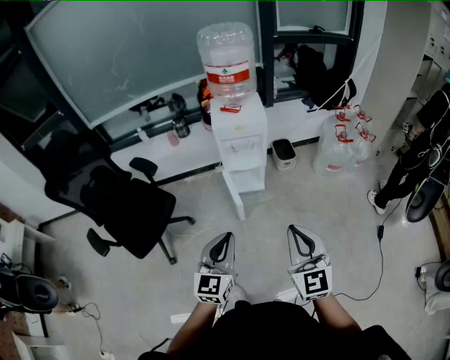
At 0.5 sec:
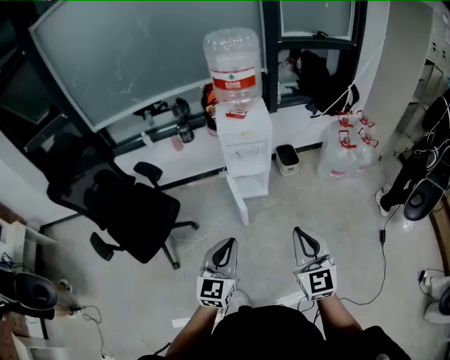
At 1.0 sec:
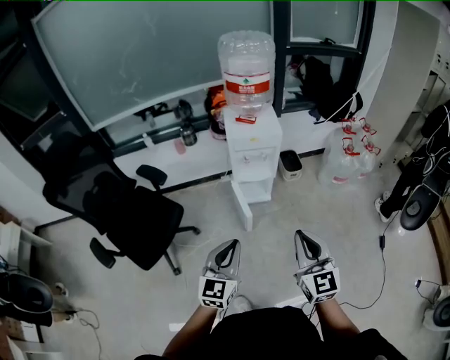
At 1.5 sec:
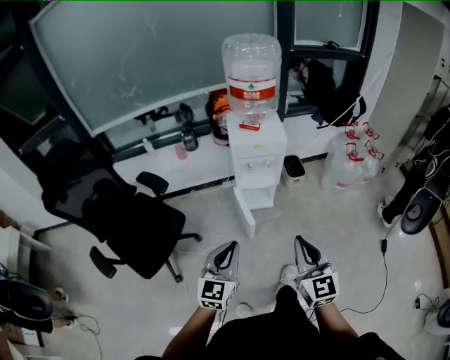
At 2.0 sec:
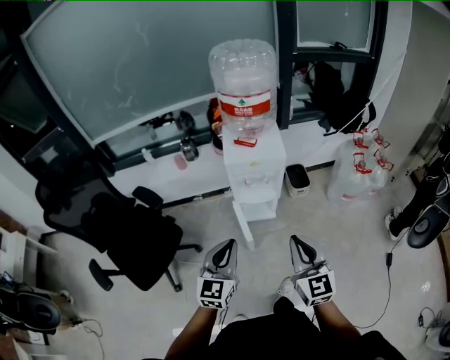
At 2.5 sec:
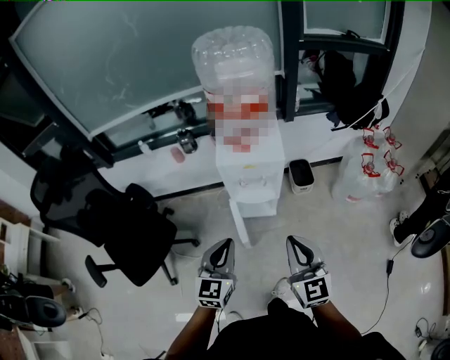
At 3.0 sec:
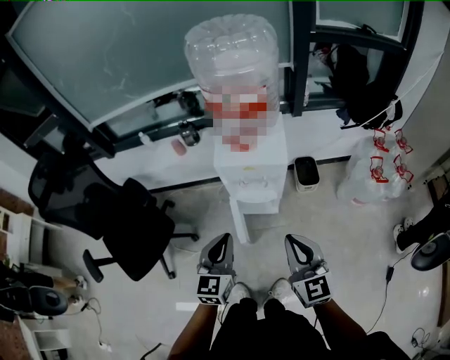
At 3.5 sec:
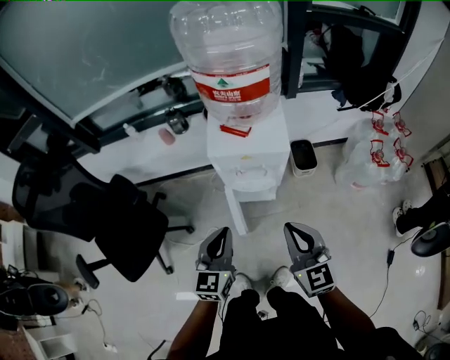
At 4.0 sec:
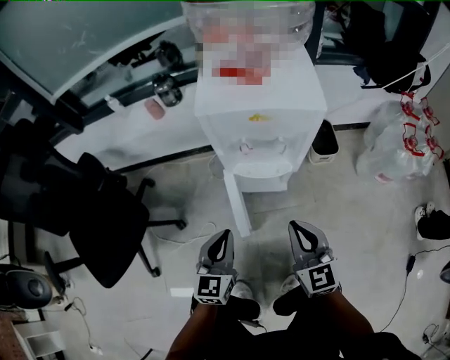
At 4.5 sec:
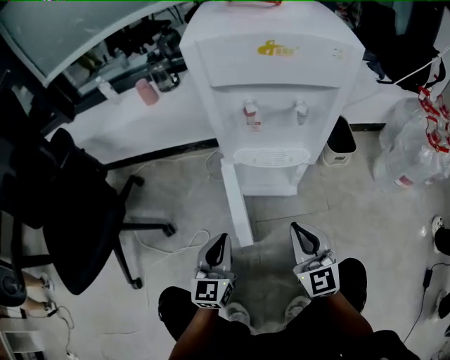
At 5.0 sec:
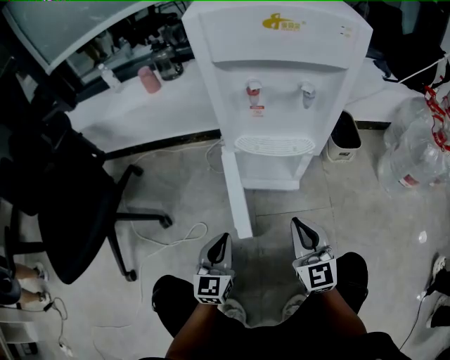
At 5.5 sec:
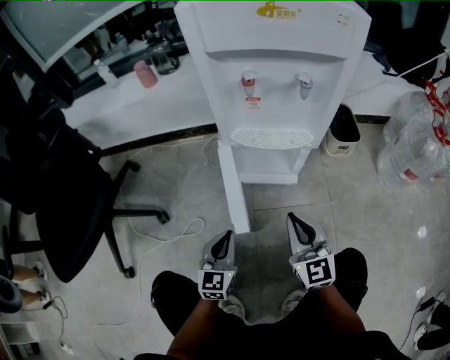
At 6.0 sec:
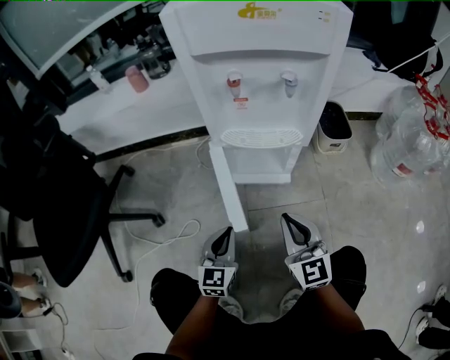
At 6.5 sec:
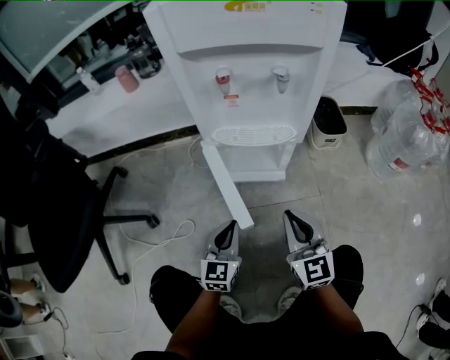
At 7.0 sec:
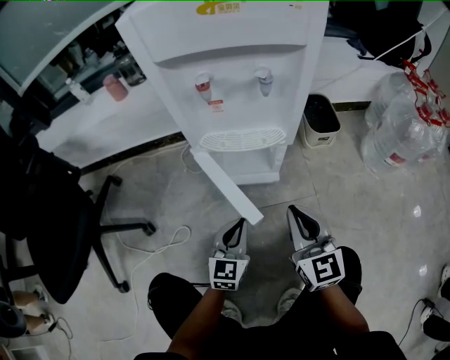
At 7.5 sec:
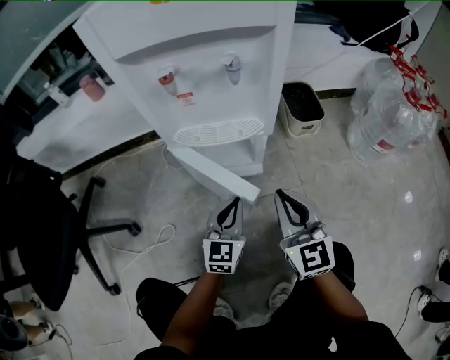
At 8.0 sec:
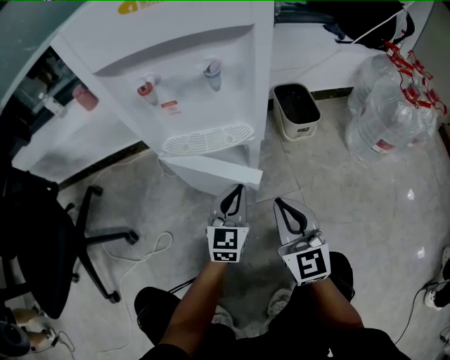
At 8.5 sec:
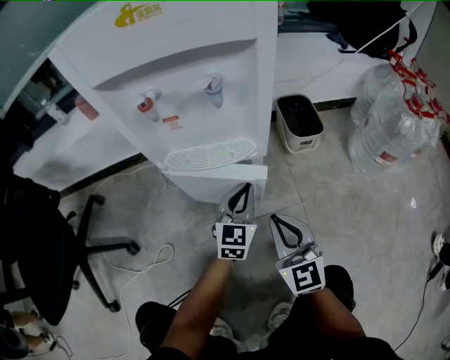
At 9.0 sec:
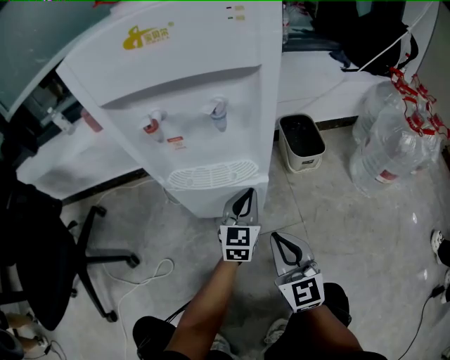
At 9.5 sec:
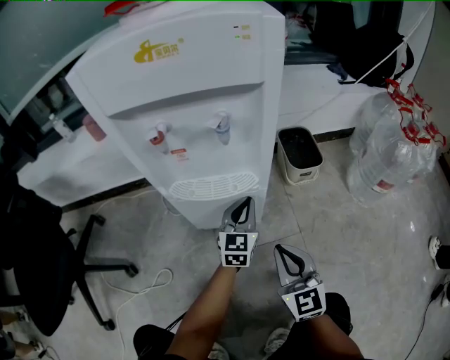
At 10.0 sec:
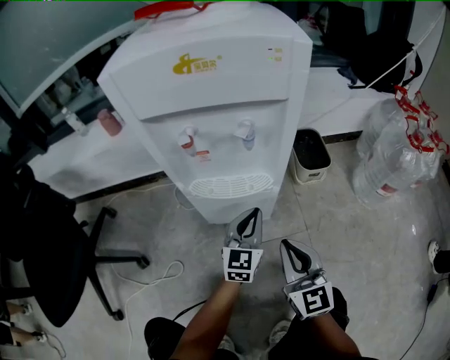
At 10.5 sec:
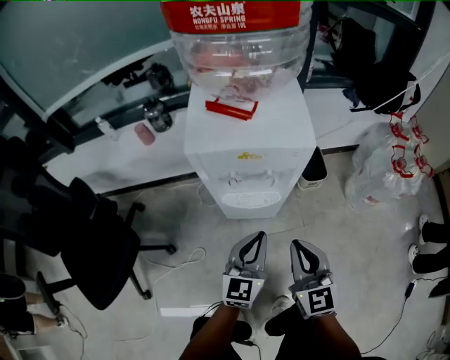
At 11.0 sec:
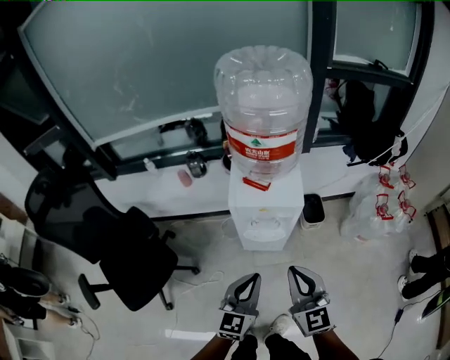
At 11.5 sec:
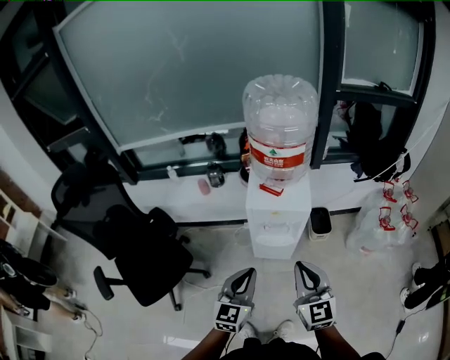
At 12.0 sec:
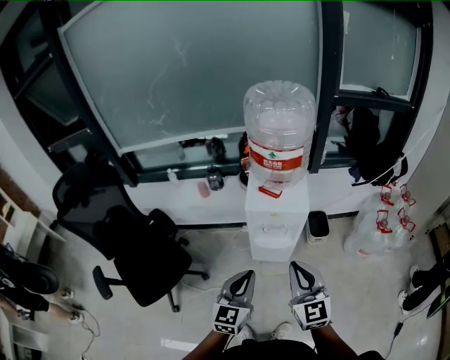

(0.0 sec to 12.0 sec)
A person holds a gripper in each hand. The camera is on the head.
0.0 sec - 2.0 sec: The two grippers go approximately 20 cm forward.
2.0 sec - 4.0 sec: The grippers both shift downward and forward by roughly 35 cm.
4.0 sec - 6.0 sec: The grippers both shift downward by roughly 25 cm.
6.0 sec - 8.0 sec: The right gripper shifts approximately 10 cm to the right. The left gripper shifts some 20 cm to the right and forward.
8.0 sec - 10.0 sec: The left gripper heads upward, covering approximately 5 cm.
10.0 sec - 12.0 sec: The right gripper shifts some 50 cm upward. The left gripper is displaced upward and backward by some 60 cm.

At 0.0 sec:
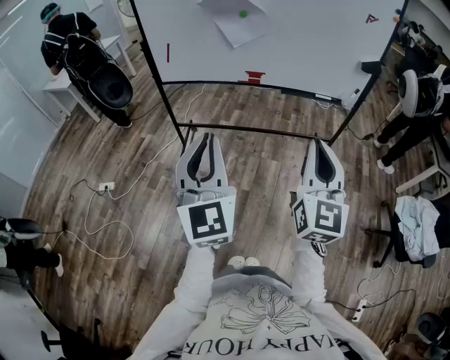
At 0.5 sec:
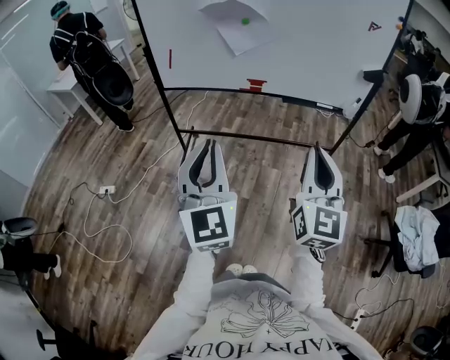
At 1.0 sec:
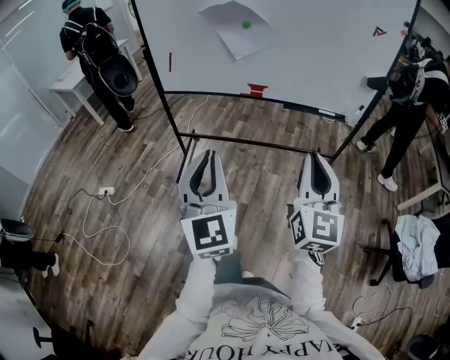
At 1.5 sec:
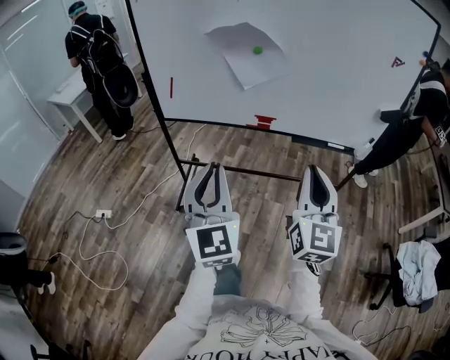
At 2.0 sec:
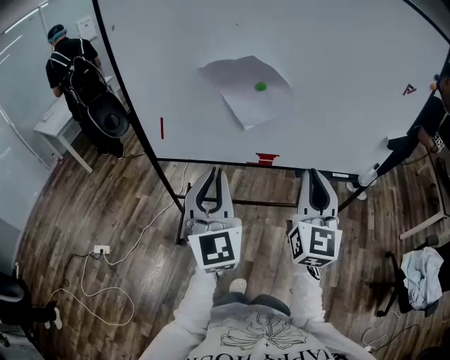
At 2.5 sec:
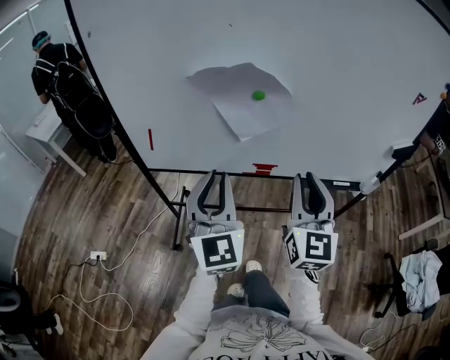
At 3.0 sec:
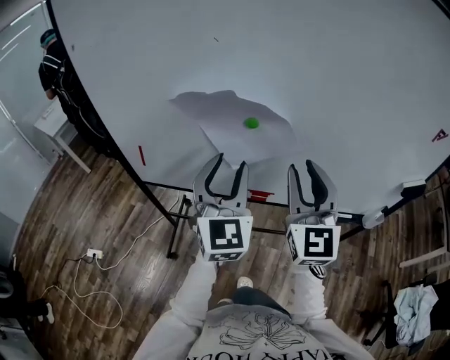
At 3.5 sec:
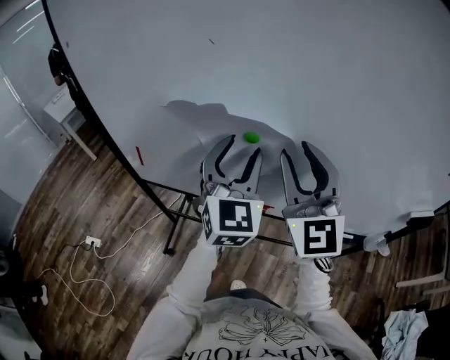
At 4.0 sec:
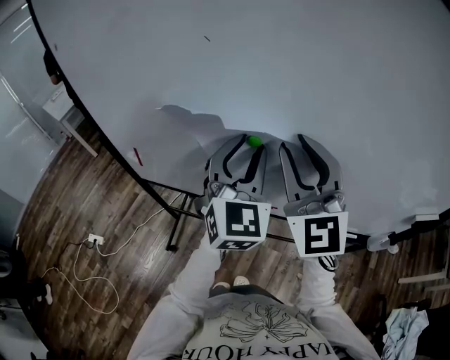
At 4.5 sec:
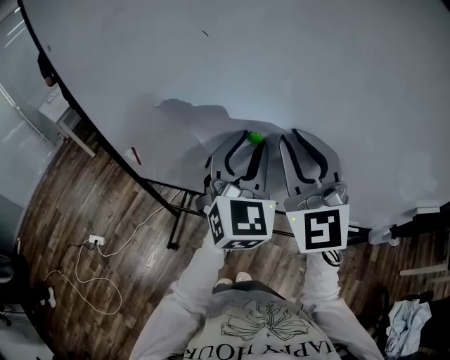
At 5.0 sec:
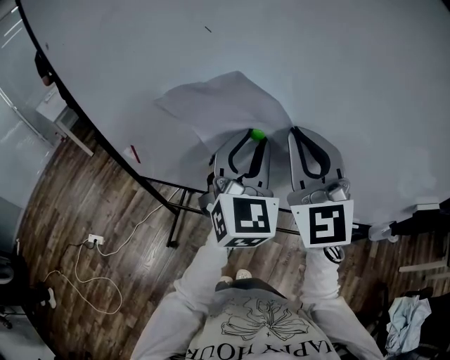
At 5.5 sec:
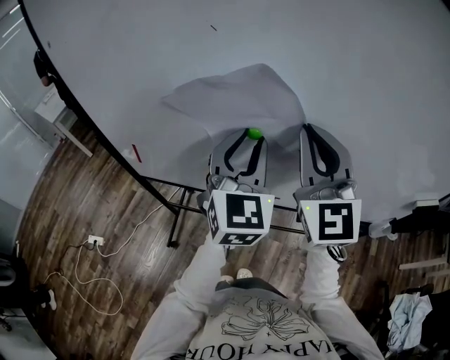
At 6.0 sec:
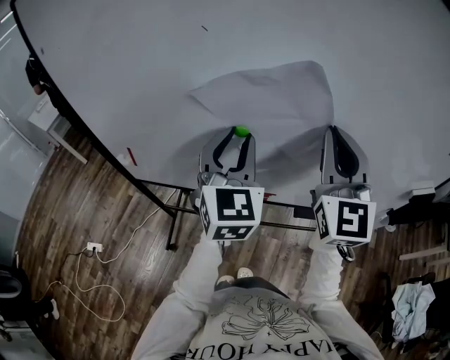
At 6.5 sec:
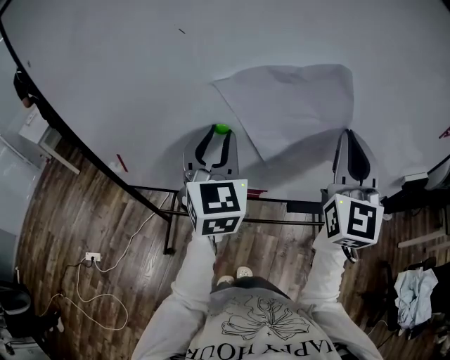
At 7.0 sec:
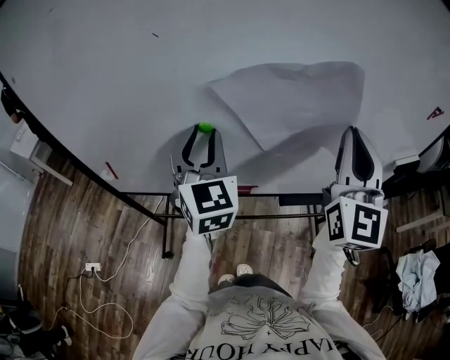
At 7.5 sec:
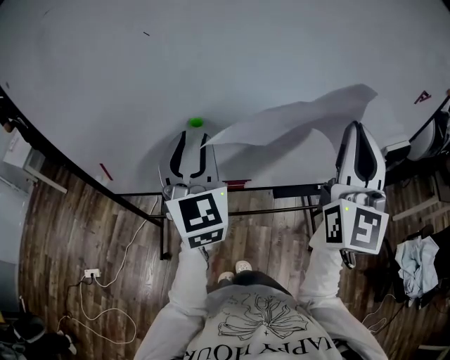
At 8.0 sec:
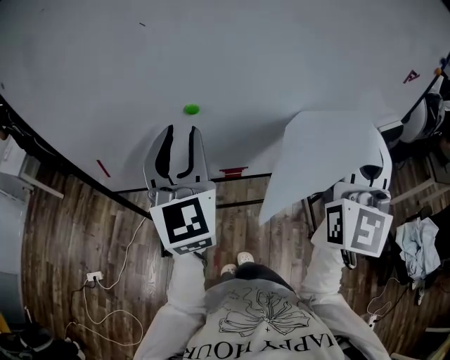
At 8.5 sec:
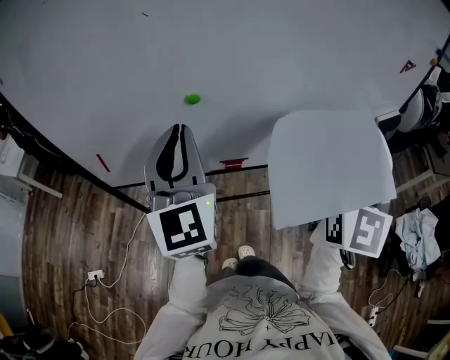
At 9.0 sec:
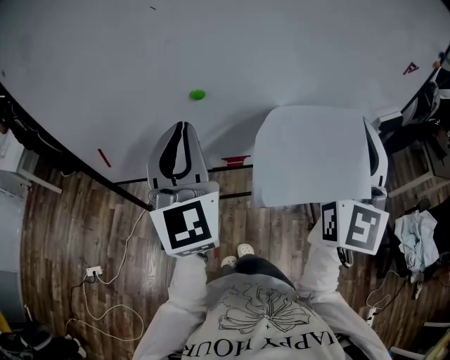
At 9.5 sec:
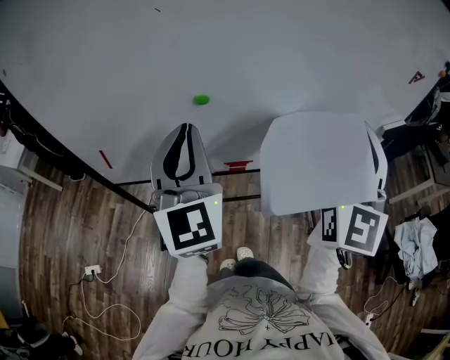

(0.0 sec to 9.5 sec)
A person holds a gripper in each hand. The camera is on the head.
0.0 sec - 2.0 sec: Both grippers move forward, about 35 cm.
2.0 sec - 4.0 sec: The left gripper shifts about 35 cm forward and to the right, and opens its fingers, while the right gripper moves forward, roughly 30 cm, turns by some 30 degrees, and opens up.
4.0 sec - 5.5 sec: The right gripper closes up.
5.5 sec - 7.5 sec: The right gripper shifts about 20 cm to the right and backward, and changes its angle by roughly 30 degrees.
7.5 sec - 9.5 sec: Both grippers move backward, approximately 5 cm. The left gripper closes up.

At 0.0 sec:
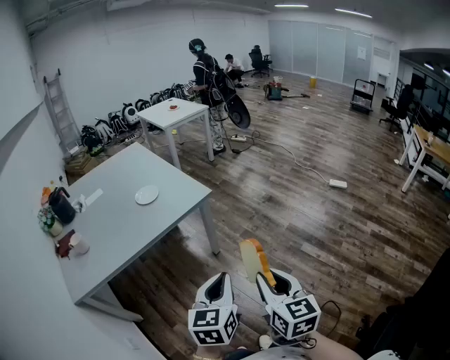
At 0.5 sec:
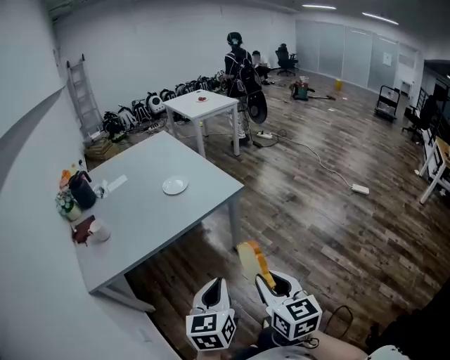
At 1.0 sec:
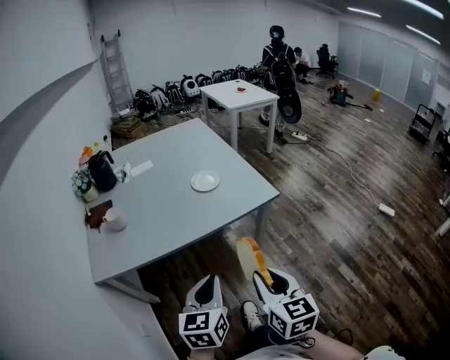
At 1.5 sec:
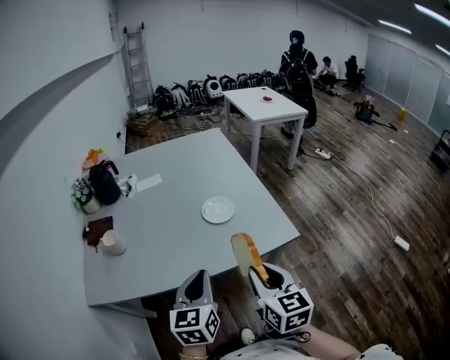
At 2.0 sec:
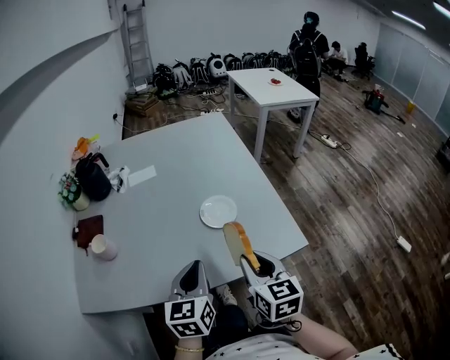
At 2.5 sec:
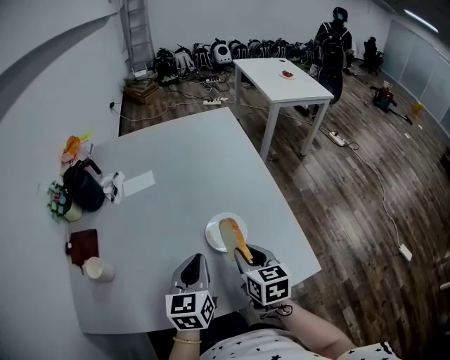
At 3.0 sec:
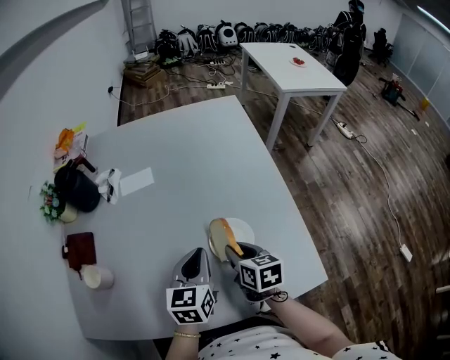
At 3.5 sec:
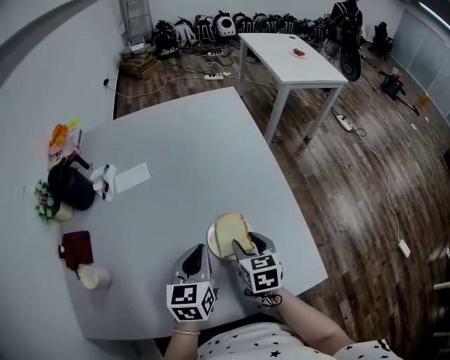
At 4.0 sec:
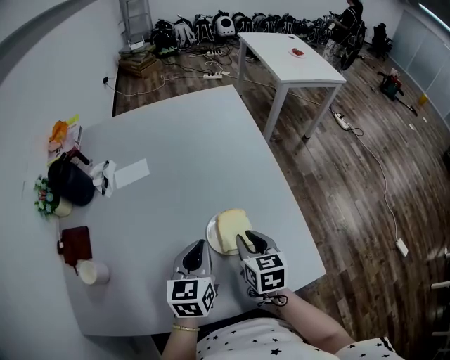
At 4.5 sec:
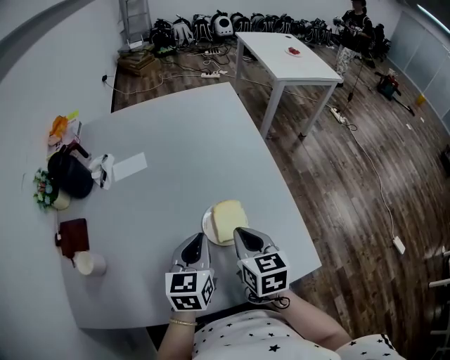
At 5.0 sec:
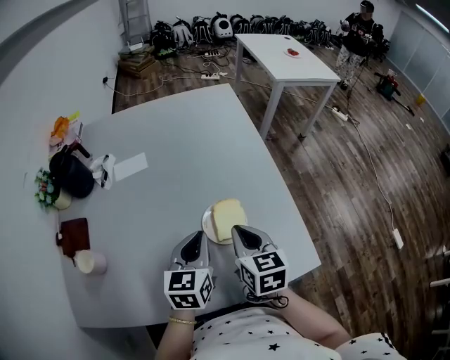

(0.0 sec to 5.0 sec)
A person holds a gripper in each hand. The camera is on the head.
0.0 sec - 2.5 sec: Both grippers are carried some 70 cm. The right gripper turns by roughly 40 degrees, while the left gripper swivels some 30 degrees.
2.5 sec - 5.0 sec: The right gripper moves some 5 cm downward and comes back, and opens and closes again. Meanwhile the left gripper goes roughly 5 cm forward.
